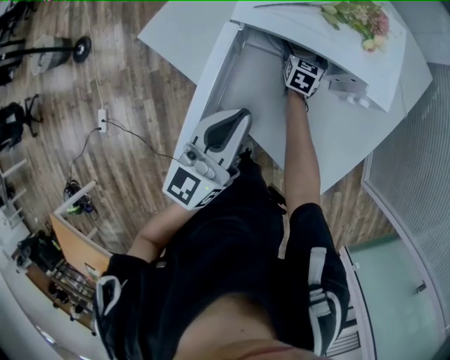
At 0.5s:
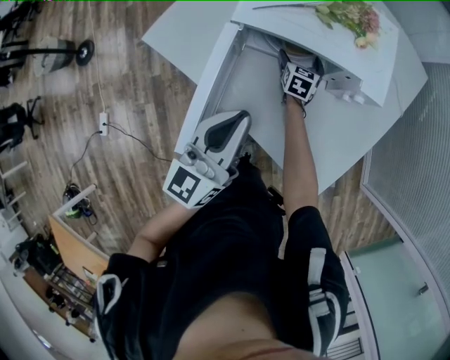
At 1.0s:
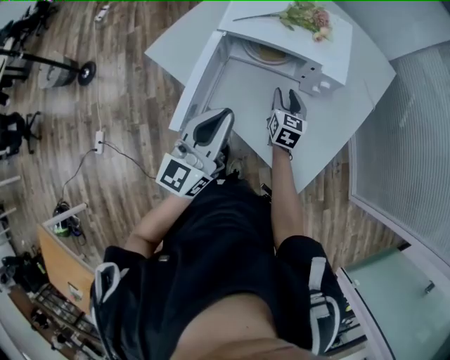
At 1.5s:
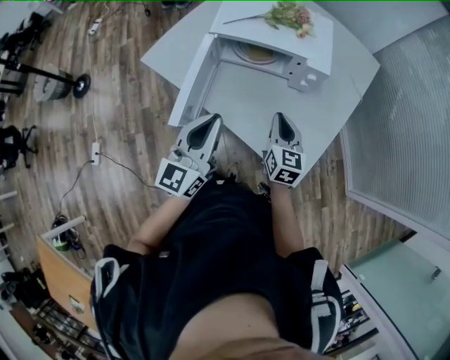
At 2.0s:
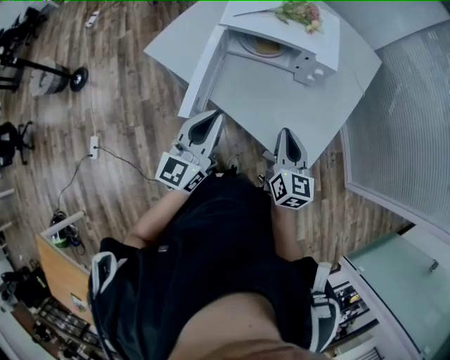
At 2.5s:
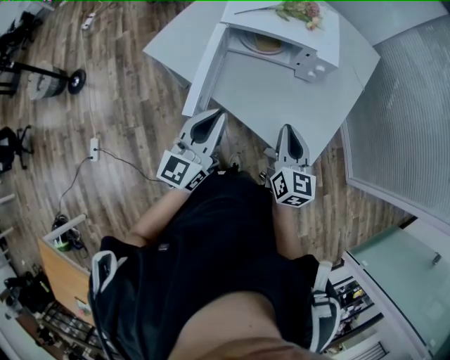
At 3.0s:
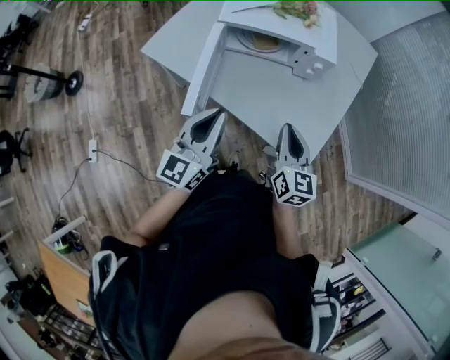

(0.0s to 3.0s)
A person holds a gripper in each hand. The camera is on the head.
0.0s - 1.5s: The left gripper heads backward and upward, covering roughly 20 cm. The right gripper heads backward and upward, covering about 40 cm, and closes its fingers.
1.5s - 3.0s: The right gripper travels backward and upward by approximately 10 cm. The left gripper moves about 5 cm.

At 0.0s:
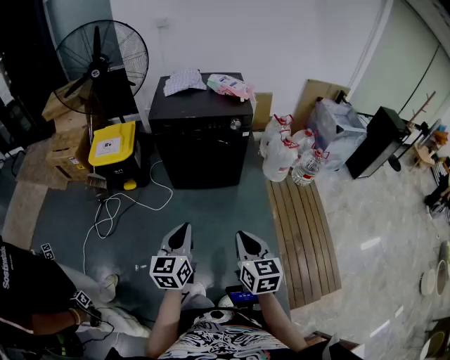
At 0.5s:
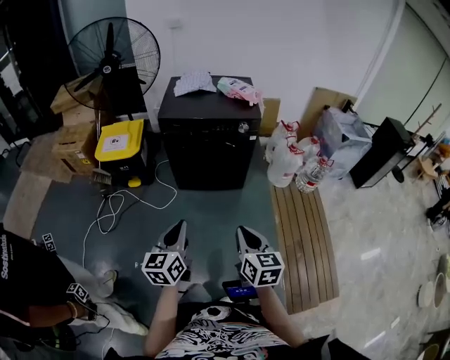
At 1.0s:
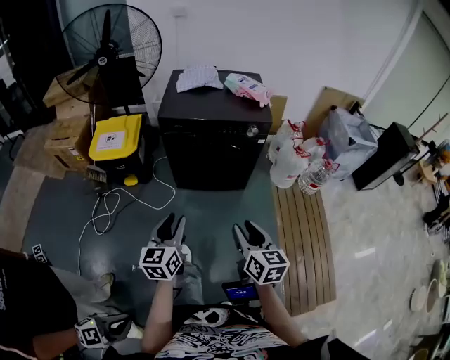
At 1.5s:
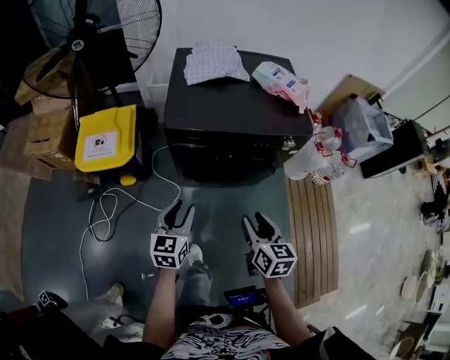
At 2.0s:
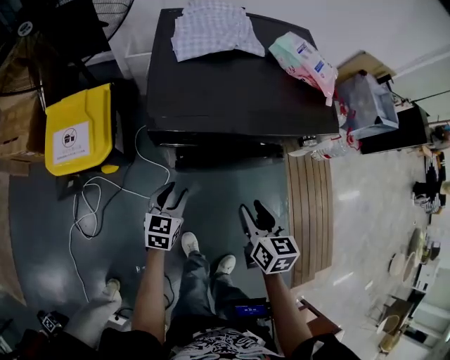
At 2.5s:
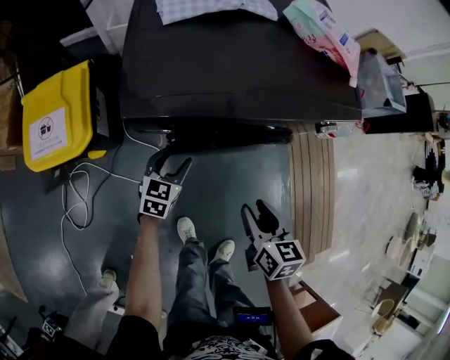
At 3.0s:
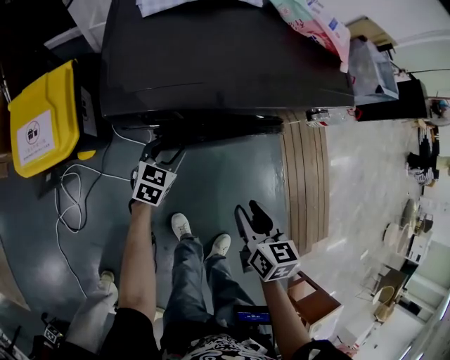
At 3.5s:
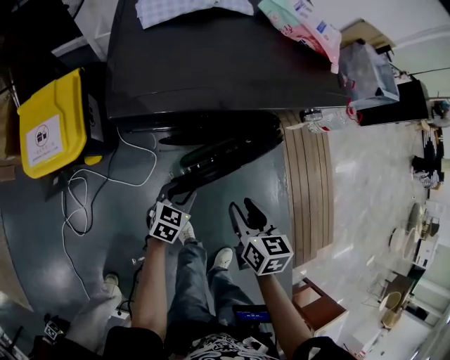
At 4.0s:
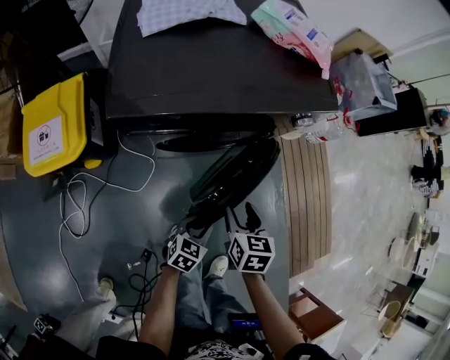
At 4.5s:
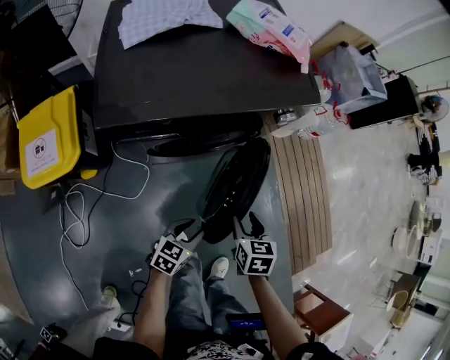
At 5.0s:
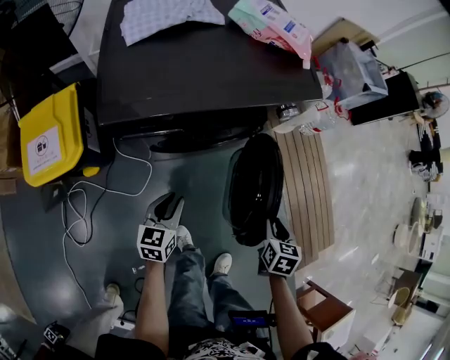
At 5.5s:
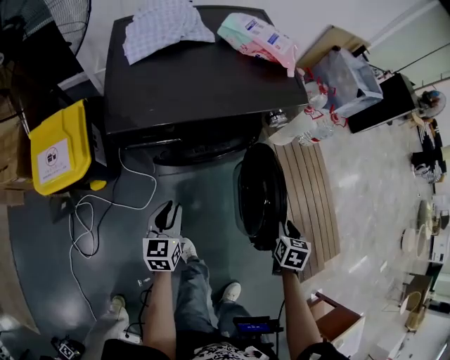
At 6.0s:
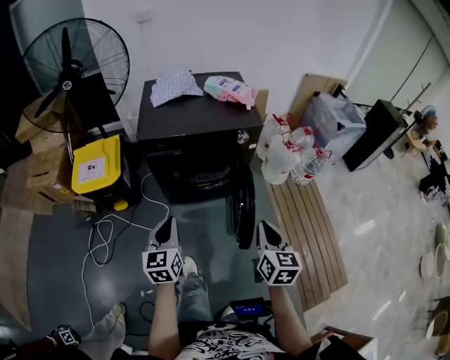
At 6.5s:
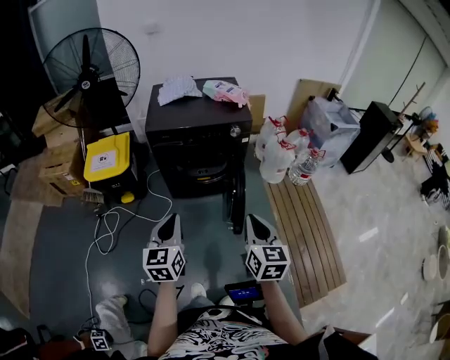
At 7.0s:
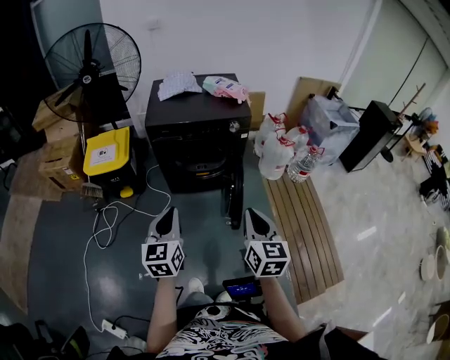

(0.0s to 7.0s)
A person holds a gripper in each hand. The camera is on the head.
0.0s - 2.0s: Both grippers are carried forward, some 50 cm. The left gripper goes approximately 25 cm downward, changes its angle by approximately 20 degrees, and opens its fingers, while the right gripper opens.
2.0s - 3.5s: The right gripper moves downward, approximately 5 cm. The left gripper shifts roughly 15 cm downward and to the right, travels forward and back again, some 10 cm each way, and turns by some 20 degrees.
3.5s - 5.0s: The right gripper goes approximately 20 cm to the right, and changes its angle by about 30 degrees. Meanwhile the left gripper shifts some 5 cm upward, and moves approximately 10 cm to the right and comes back.
5.0s - 7.0s: The two grippers go about 35 cm upward. The right gripper tips its fingers upward by about 40 degrees, and closes up. The left gripper rotates approximately 30 degrees, and closes.

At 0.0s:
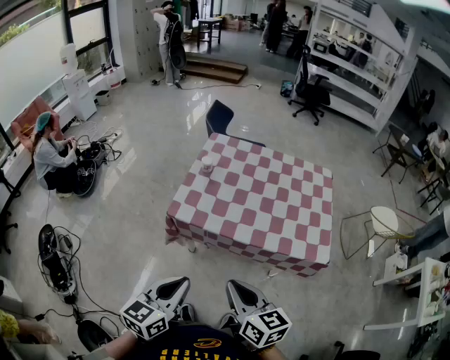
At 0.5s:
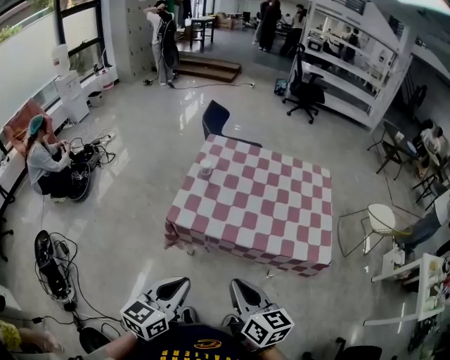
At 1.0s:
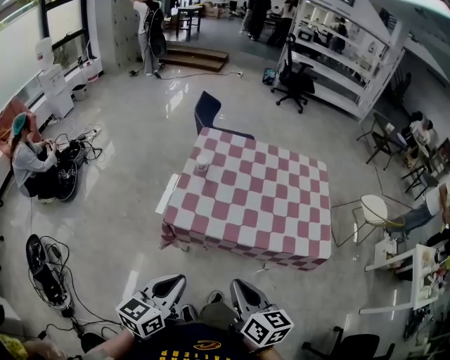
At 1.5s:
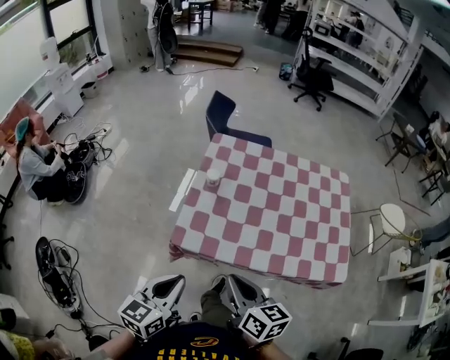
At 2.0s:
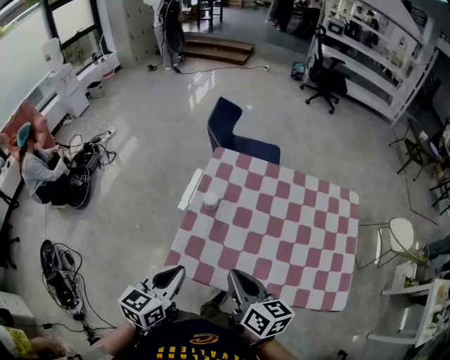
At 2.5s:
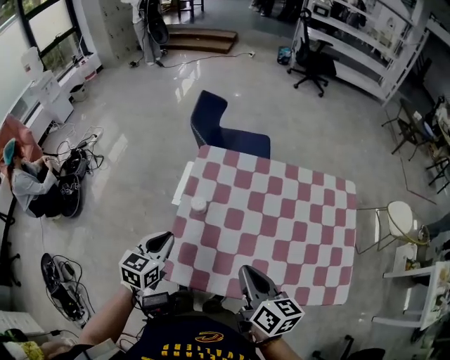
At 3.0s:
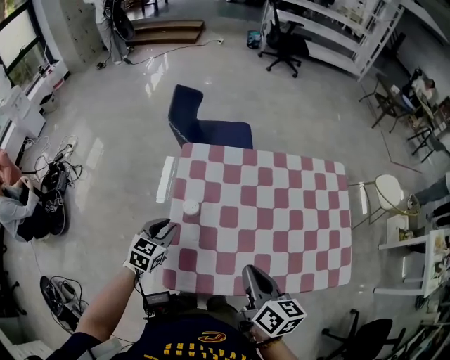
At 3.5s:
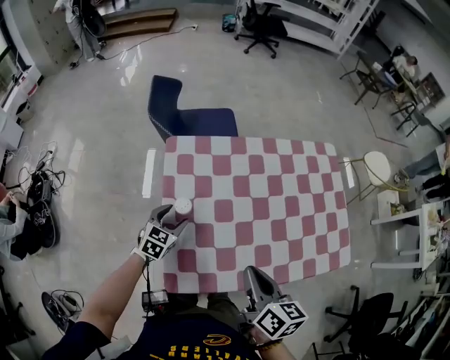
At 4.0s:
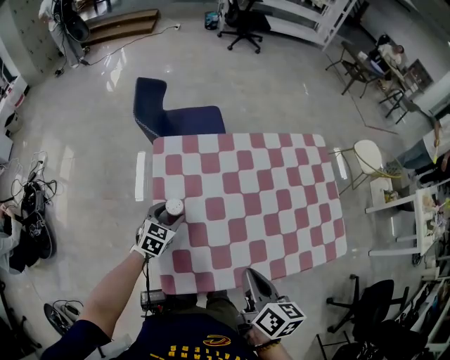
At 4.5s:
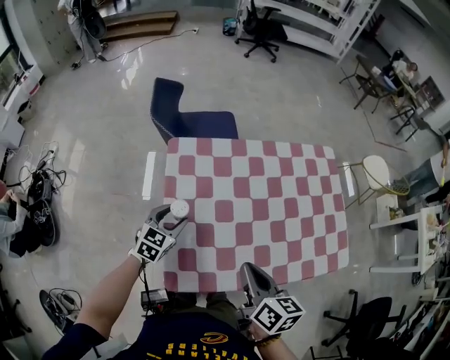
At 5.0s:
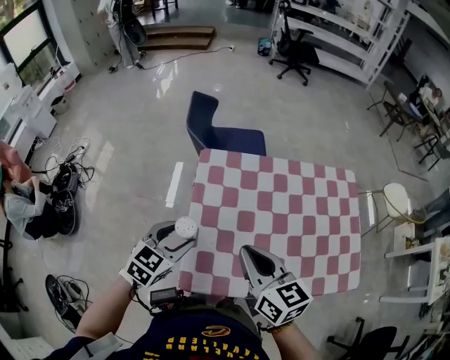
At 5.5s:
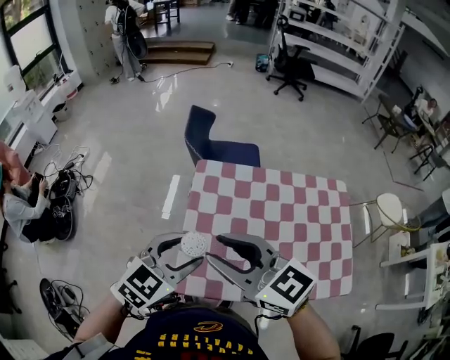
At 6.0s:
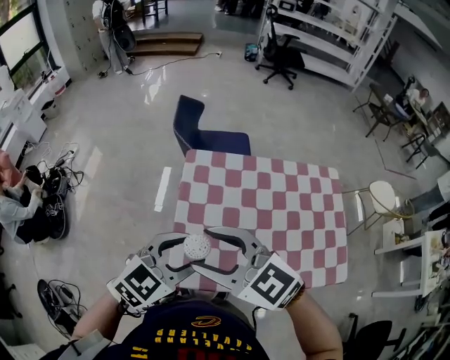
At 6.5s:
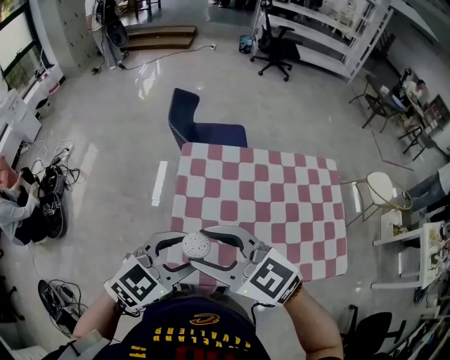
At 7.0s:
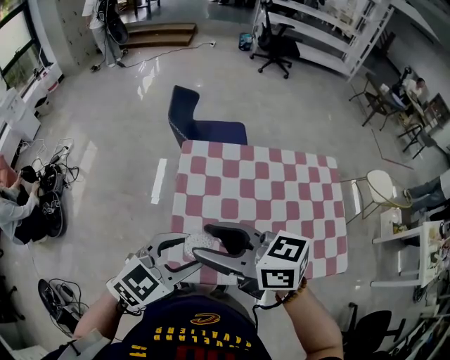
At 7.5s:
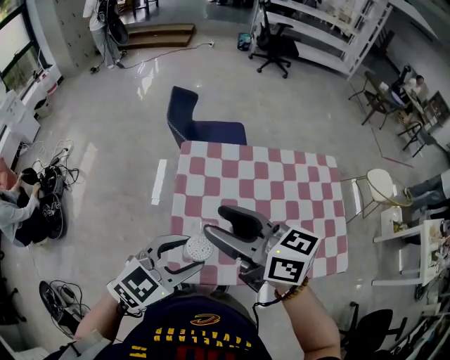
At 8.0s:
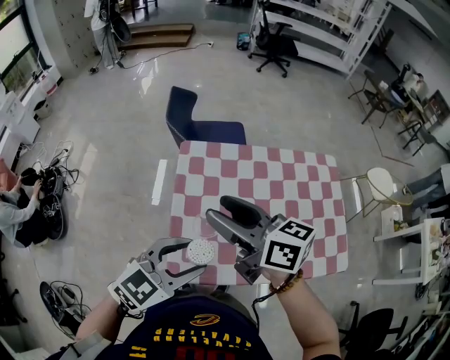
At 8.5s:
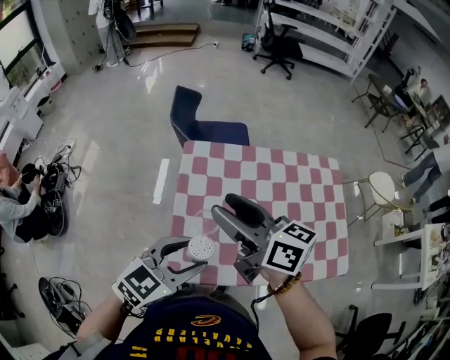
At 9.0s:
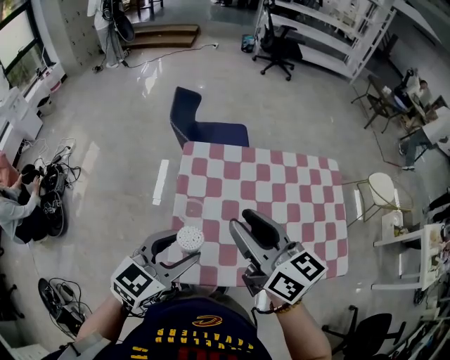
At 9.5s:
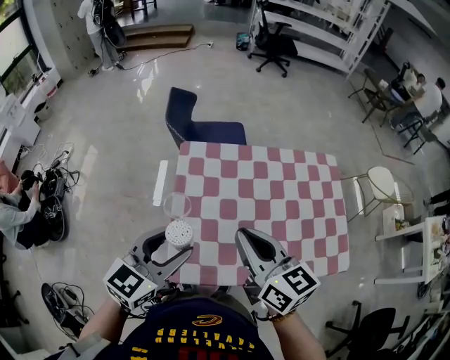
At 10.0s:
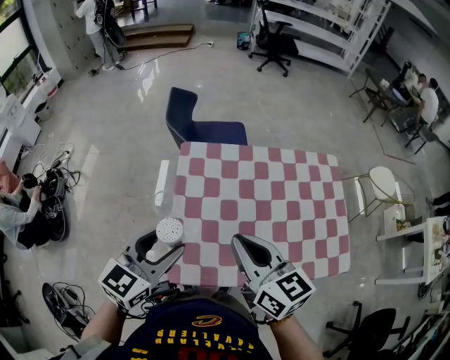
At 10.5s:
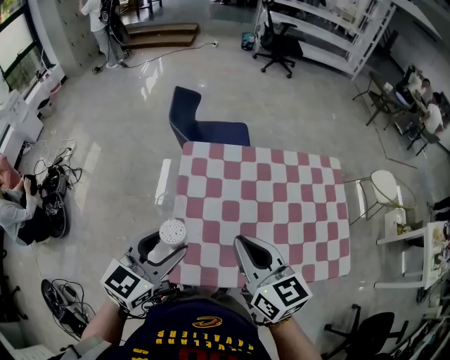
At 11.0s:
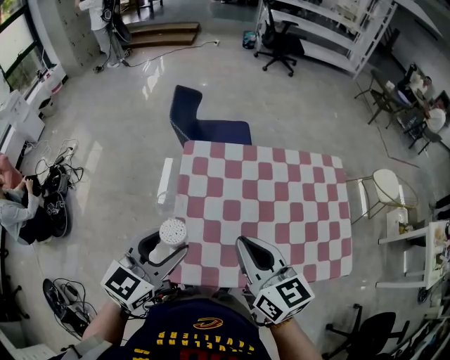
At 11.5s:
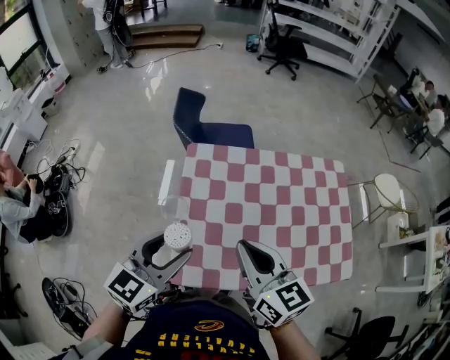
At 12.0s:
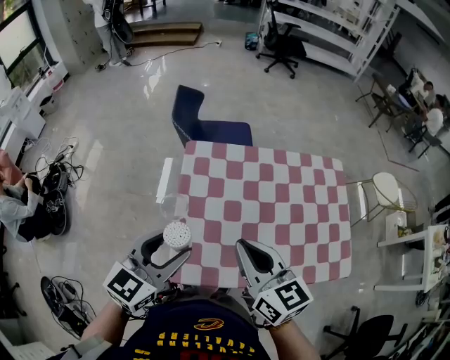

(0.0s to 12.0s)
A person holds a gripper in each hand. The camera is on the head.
0.0s - 2.0s: Both grippers move forward, some 30 cm.
2.0s - 4.0s: The right gripper shifts by some 5 cm, and swivels some 40 degrees, while the left gripper moves approximately 35 cm, changes its angle by approximately 40 degrees, and opens.
4.0s - 6.0s: The right gripper heads upward and to the left, covering some 25 cm, swivels about 80 degrees, and opens up. Meanwhile the left gripper heads upward and backward, covering roughly 35 cm.
6.0s - 8.0s: The right gripper is displaced forward and to the right by about 10 cm, and twists approximately 40 degrees clockwise, seen from behind.
8.0s - 10.0s: The right gripper goes approximately 5 cm to the right, changes its angle by about 20 degrees, and closes its fingers. Meanwhile the left gripper shifts some 5 cm to the left, and swivels about 20 degrees.
10.0s - 12.0s: Both grippers stay about where they are.

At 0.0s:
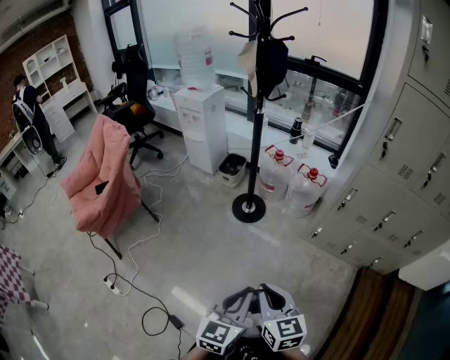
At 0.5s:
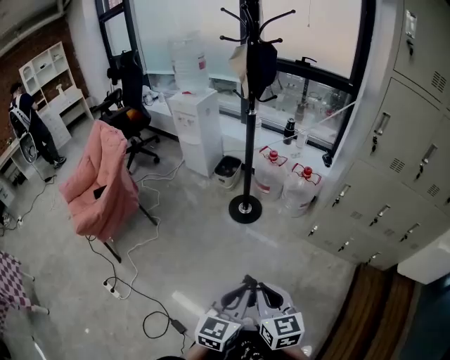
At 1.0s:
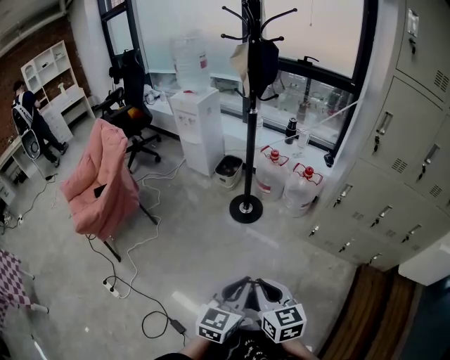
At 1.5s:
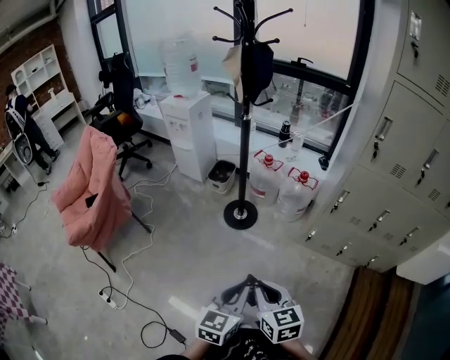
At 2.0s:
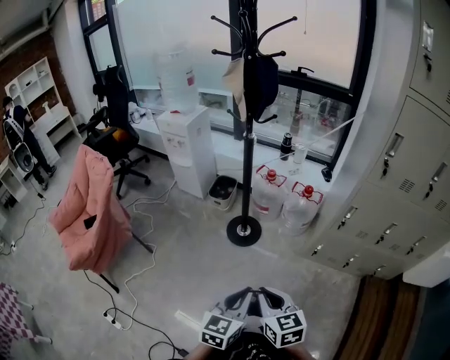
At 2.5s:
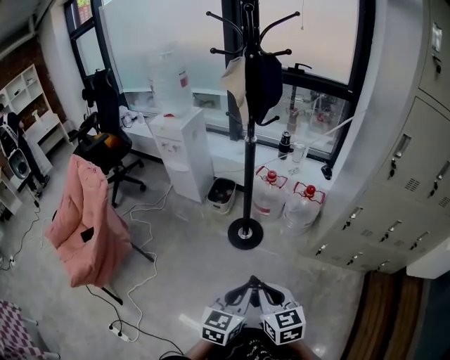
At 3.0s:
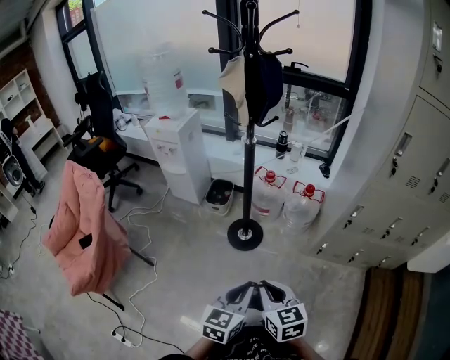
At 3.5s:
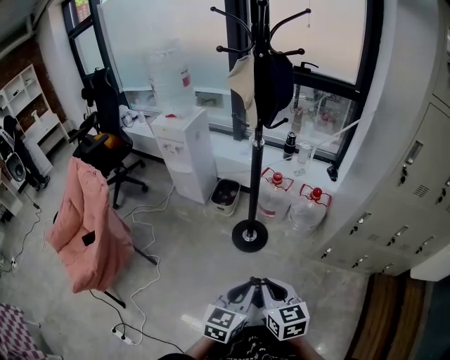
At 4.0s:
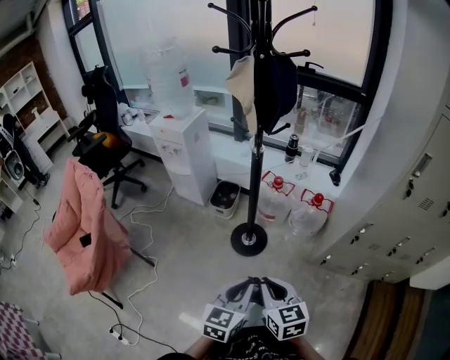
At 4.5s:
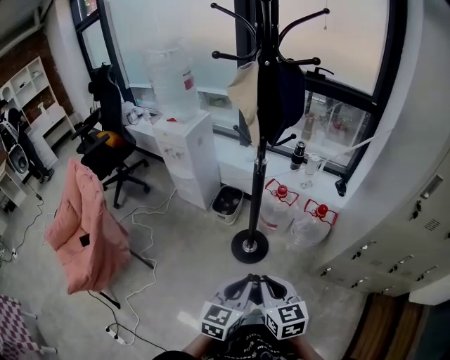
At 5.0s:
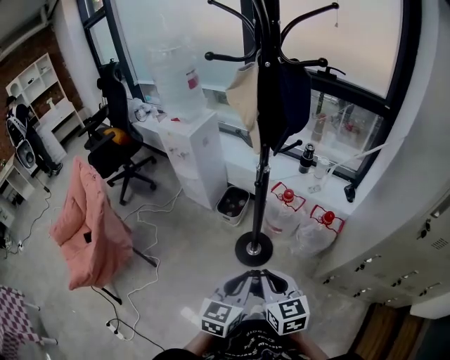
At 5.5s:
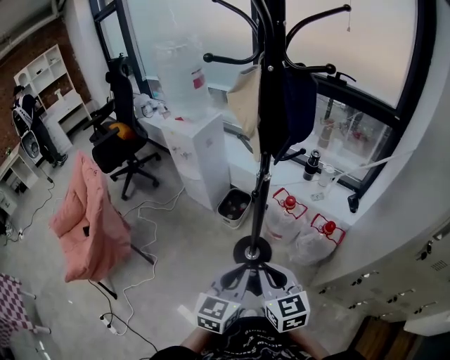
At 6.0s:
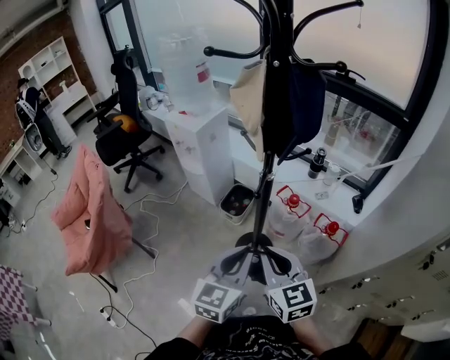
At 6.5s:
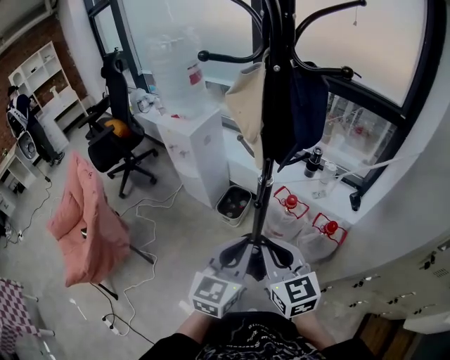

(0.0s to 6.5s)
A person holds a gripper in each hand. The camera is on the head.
0.0s - 2.0s: Both grippers move forward, approximately 15 cm.
2.0s - 4.5s: The grippers both shift forward by some 20 cm.
4.5s - 6.5s: Both grippers move forward and upward, some 20 cm.
